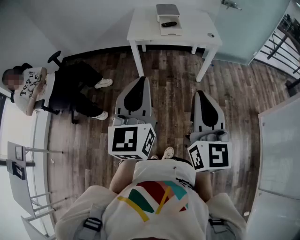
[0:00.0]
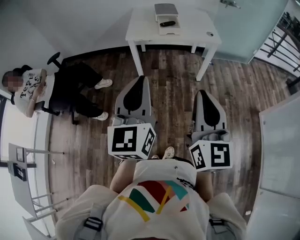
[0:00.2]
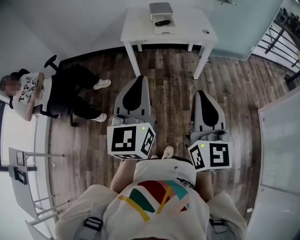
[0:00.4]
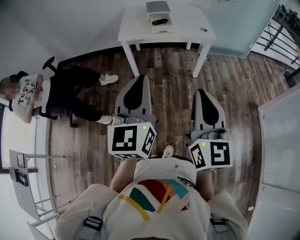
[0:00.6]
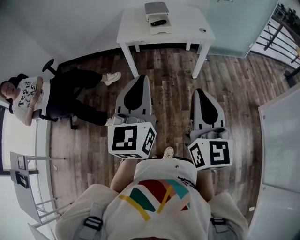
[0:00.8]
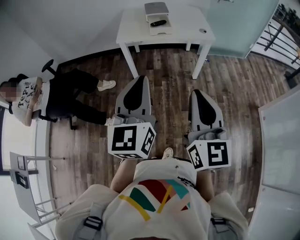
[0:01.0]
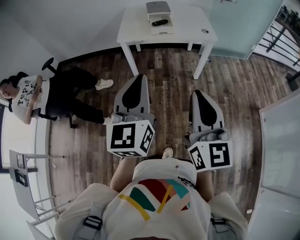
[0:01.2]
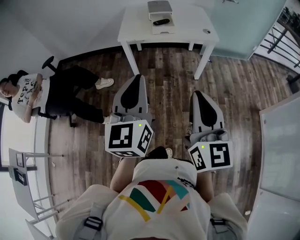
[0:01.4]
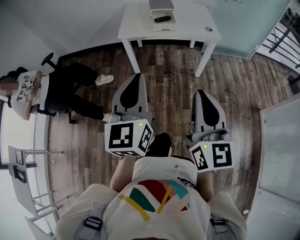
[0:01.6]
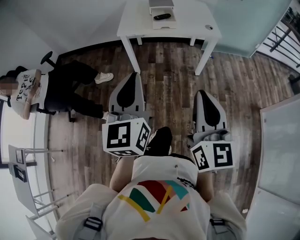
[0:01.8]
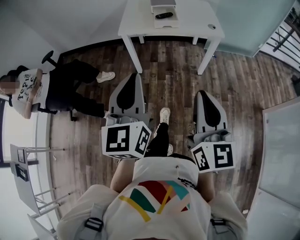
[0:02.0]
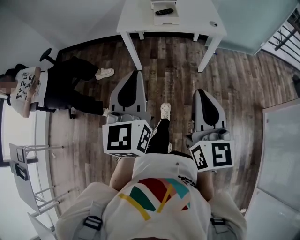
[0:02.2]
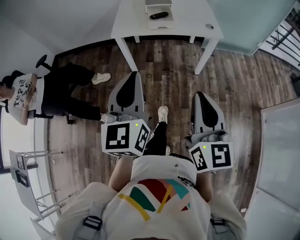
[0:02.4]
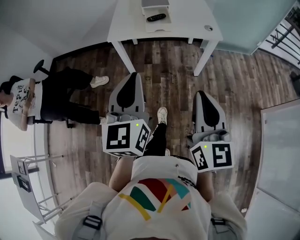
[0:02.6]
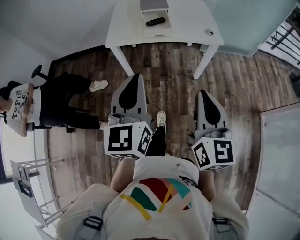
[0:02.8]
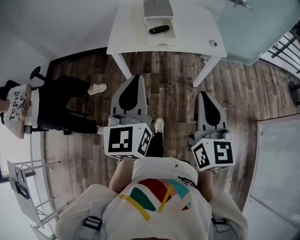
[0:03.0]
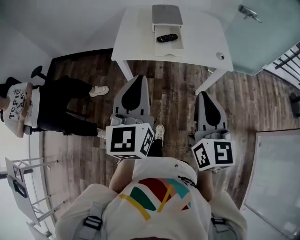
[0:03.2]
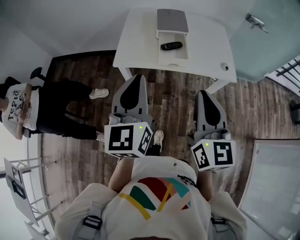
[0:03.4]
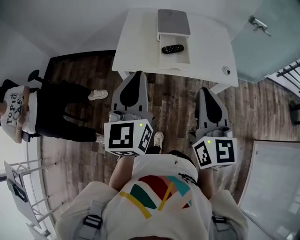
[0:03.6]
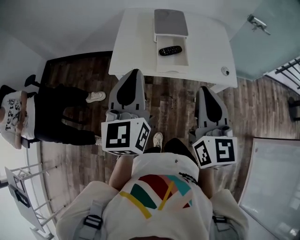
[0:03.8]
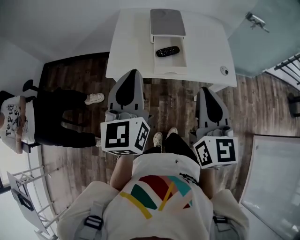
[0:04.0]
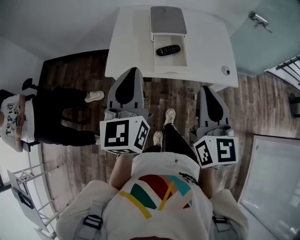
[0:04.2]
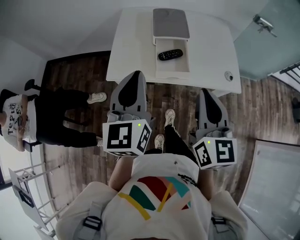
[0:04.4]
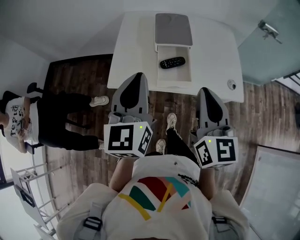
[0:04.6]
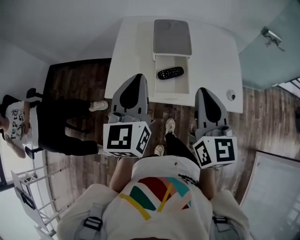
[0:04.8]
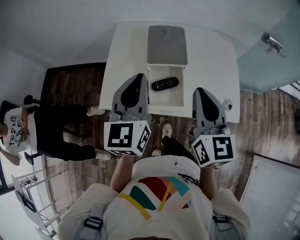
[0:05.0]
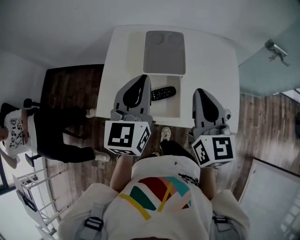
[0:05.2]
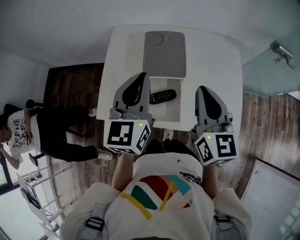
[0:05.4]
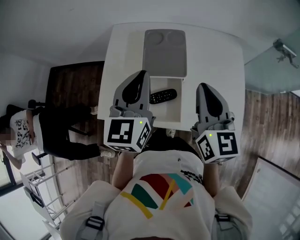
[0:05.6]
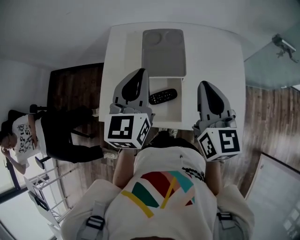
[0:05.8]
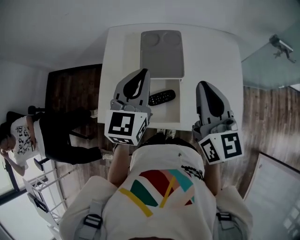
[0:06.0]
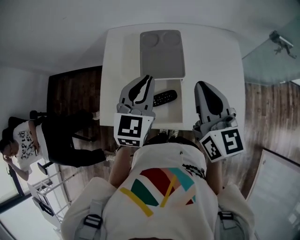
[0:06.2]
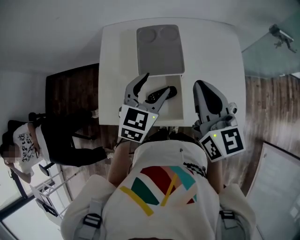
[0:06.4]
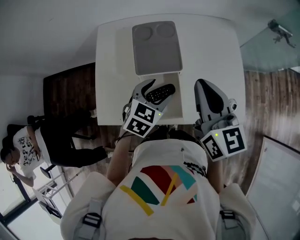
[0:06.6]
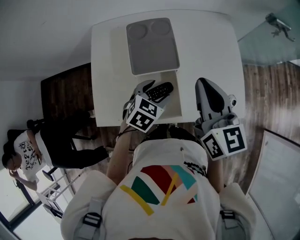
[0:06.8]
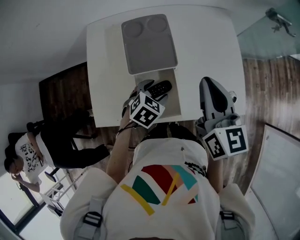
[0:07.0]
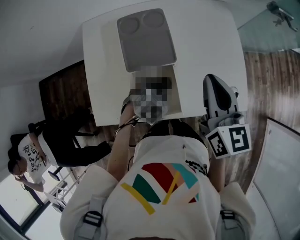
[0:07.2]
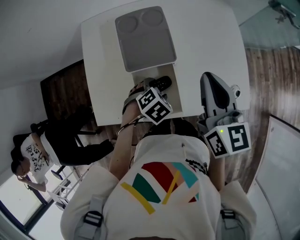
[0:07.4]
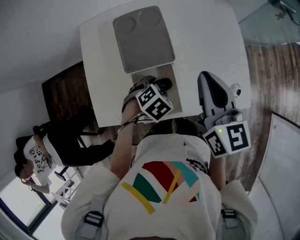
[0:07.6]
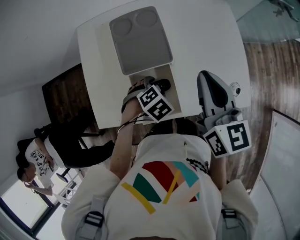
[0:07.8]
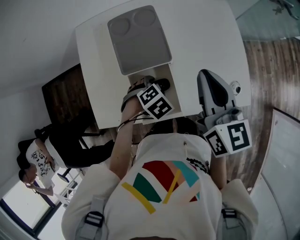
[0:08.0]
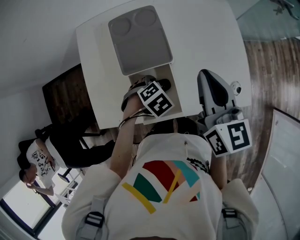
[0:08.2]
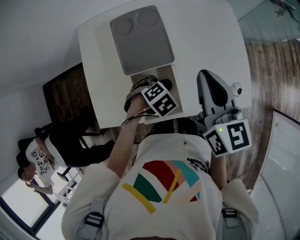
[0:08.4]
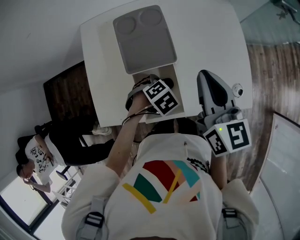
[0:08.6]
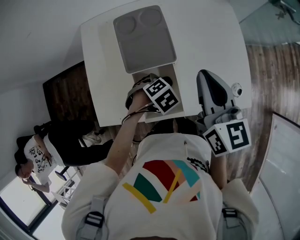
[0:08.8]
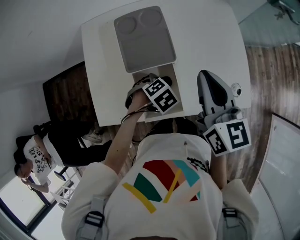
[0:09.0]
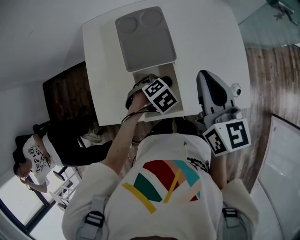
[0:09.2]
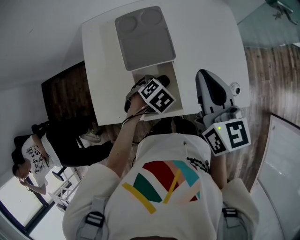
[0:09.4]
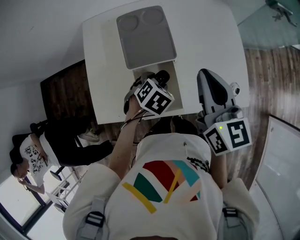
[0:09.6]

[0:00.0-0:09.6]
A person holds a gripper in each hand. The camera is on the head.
0:00.0 to 0:01.6: The left gripper is displaced forward by roughly 5 cm. The right gripper shifts approximately 5 cm forward and to the right.
0:01.6 to 0:03.2: Both grippers move forward, roughly 30 cm.
0:03.2 to 0:04.8: The two grippers go some 30 cm forward.
0:04.8 to 0:06.4: The left gripper moves forward, downward and to the right, some 25 cm, rotates some 40 degrees, and opens up; the right gripper heads forward, covering about 15 cm.
0:06.4 to 0:08.0: The right gripper changes place by some 5 cm, while the left gripper goes approximately 20 cm downward, and tilts its fingers about 50 degrees downward.
0:08.0 to 0:09.6: The grippers stay close to where they were, moving slightly.

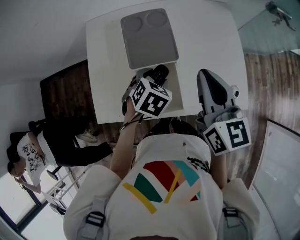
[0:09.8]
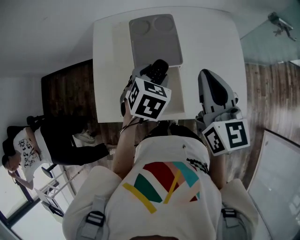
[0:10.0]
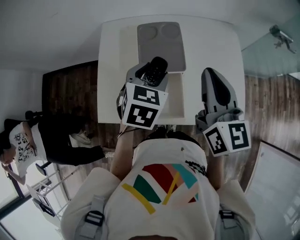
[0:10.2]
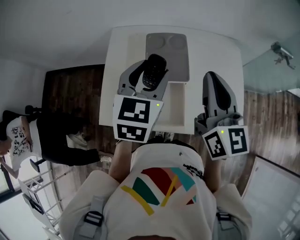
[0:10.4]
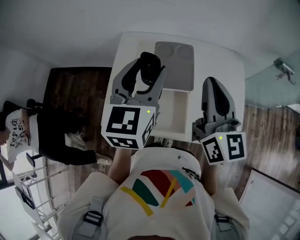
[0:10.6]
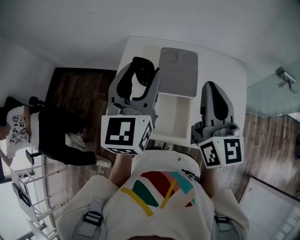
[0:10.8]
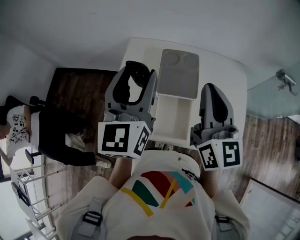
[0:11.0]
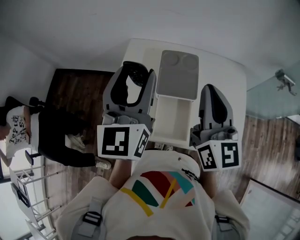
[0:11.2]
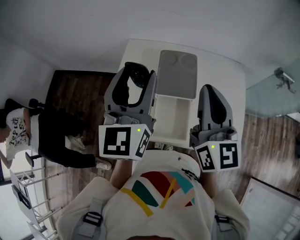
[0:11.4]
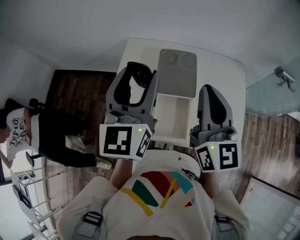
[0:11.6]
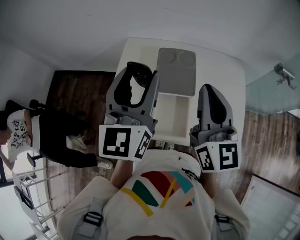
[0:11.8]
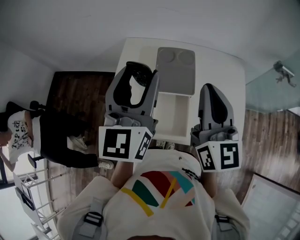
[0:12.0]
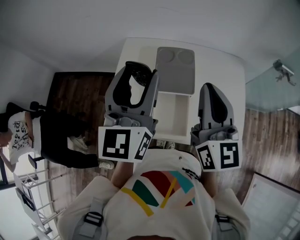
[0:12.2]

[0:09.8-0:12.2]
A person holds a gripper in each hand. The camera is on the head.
0:09.8 to 0:11.0: The right gripper is displaced upward and to the left by approximately 15 cm; the left gripper goes about 35 cm upward and to the left, and tips its fingers upward by about 60 degrees.
0:11.0 to 0:12.2: There are only small adjustments of the grippers.

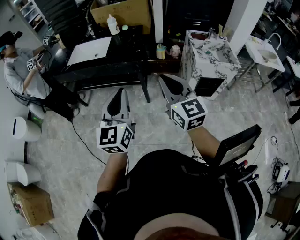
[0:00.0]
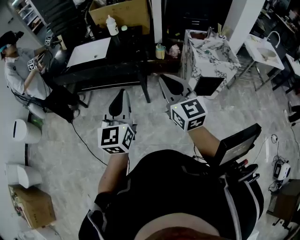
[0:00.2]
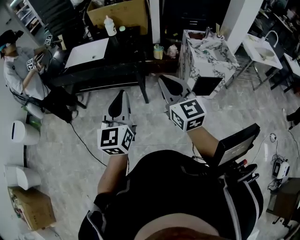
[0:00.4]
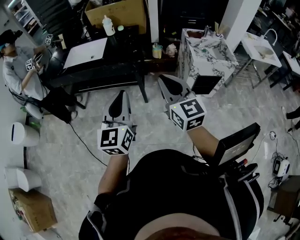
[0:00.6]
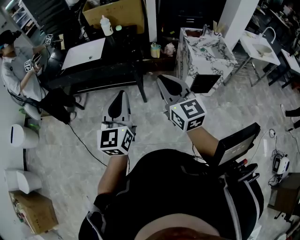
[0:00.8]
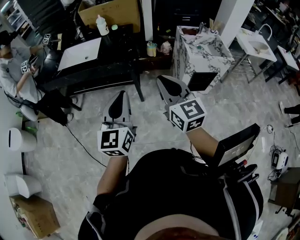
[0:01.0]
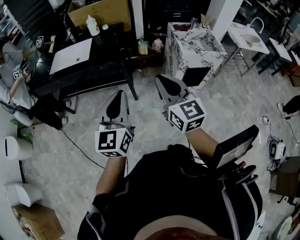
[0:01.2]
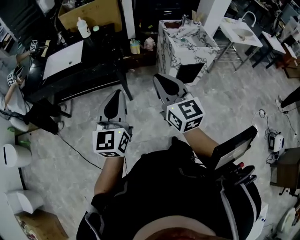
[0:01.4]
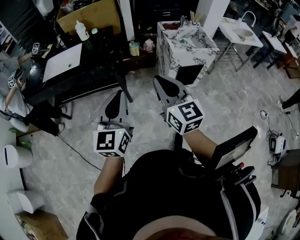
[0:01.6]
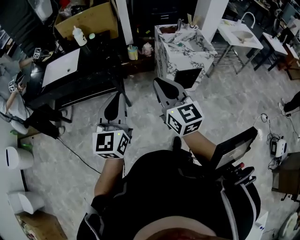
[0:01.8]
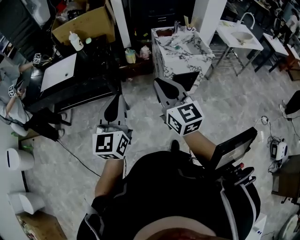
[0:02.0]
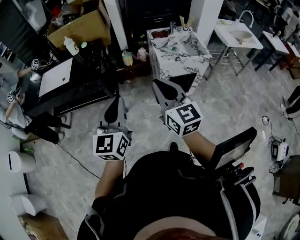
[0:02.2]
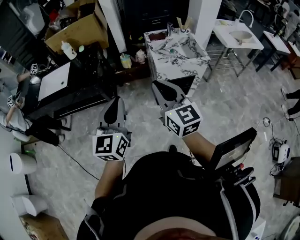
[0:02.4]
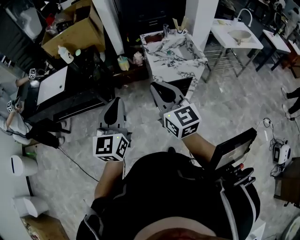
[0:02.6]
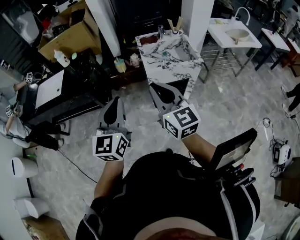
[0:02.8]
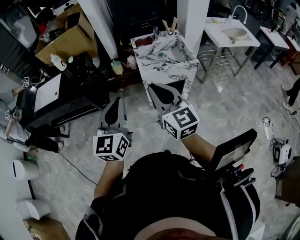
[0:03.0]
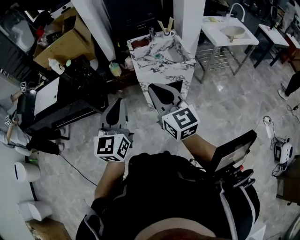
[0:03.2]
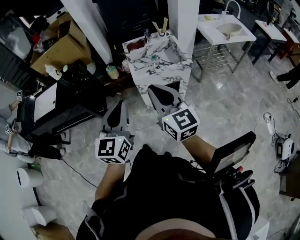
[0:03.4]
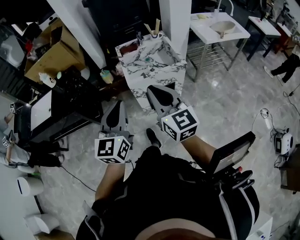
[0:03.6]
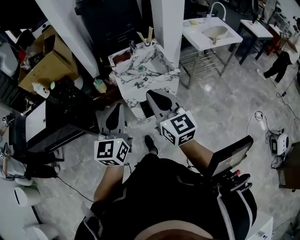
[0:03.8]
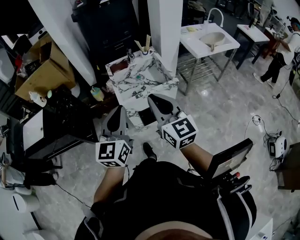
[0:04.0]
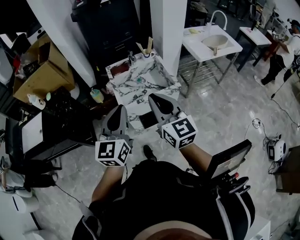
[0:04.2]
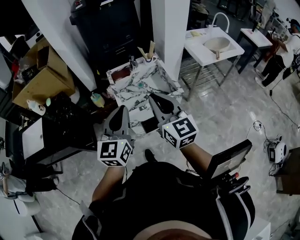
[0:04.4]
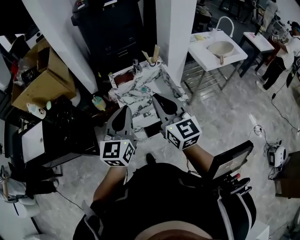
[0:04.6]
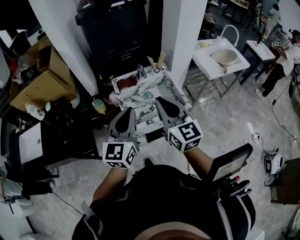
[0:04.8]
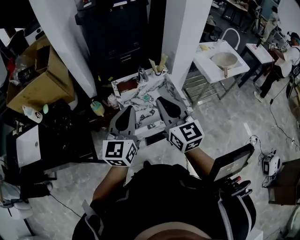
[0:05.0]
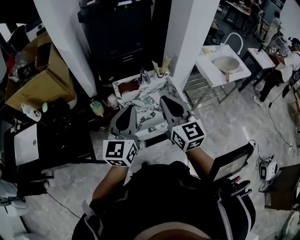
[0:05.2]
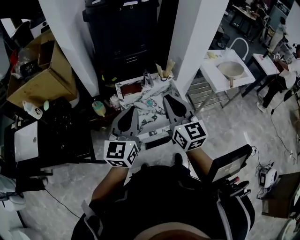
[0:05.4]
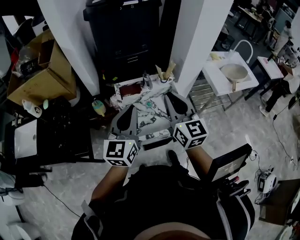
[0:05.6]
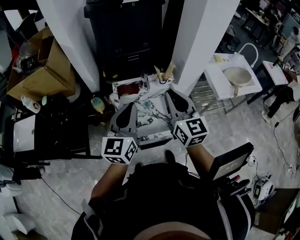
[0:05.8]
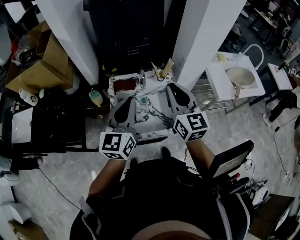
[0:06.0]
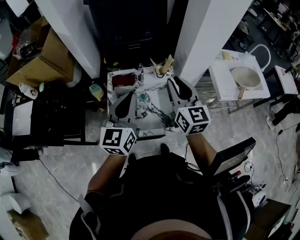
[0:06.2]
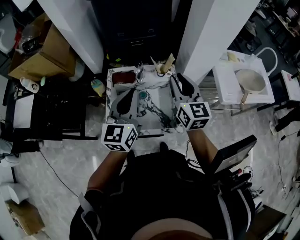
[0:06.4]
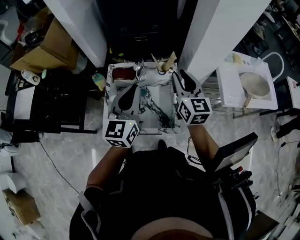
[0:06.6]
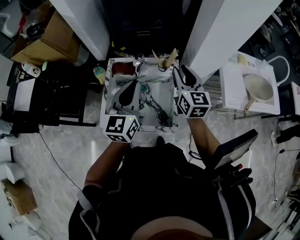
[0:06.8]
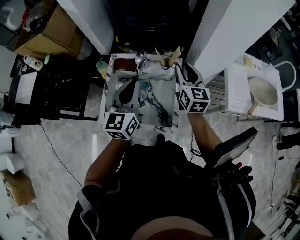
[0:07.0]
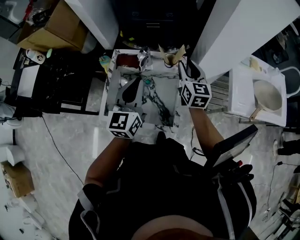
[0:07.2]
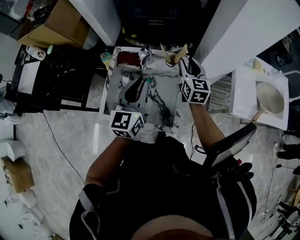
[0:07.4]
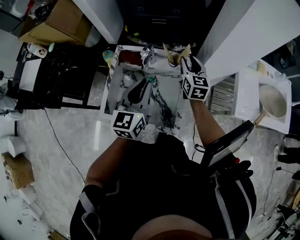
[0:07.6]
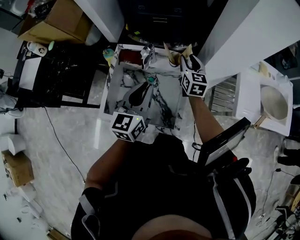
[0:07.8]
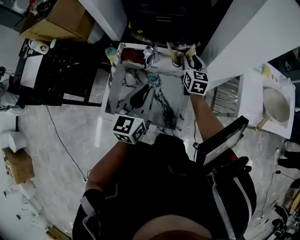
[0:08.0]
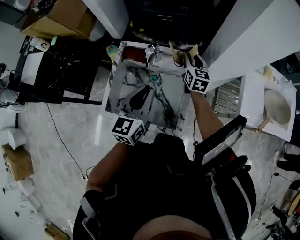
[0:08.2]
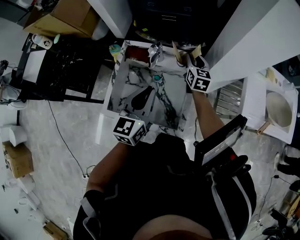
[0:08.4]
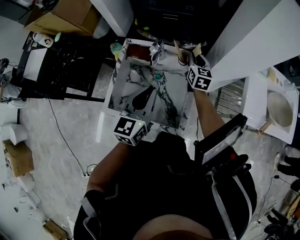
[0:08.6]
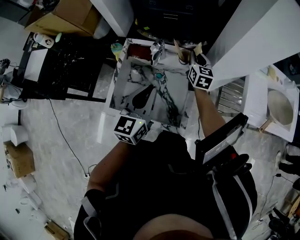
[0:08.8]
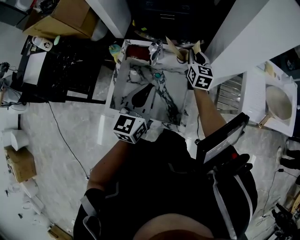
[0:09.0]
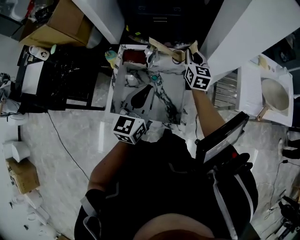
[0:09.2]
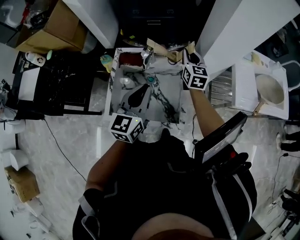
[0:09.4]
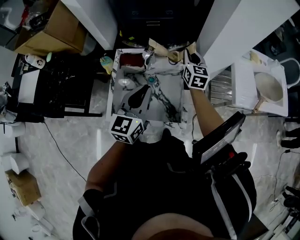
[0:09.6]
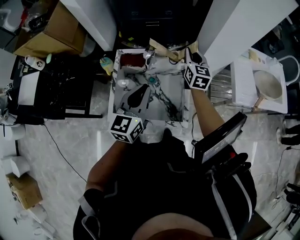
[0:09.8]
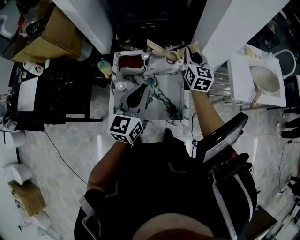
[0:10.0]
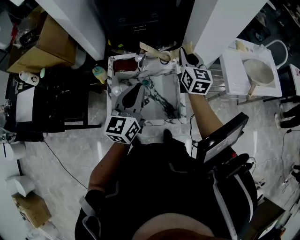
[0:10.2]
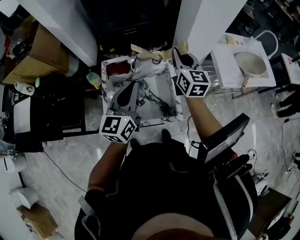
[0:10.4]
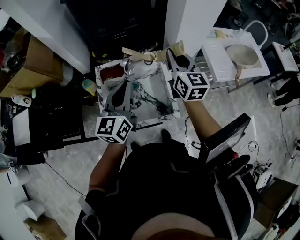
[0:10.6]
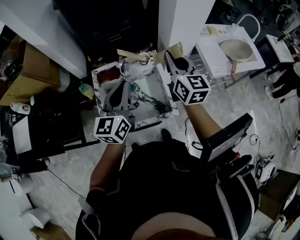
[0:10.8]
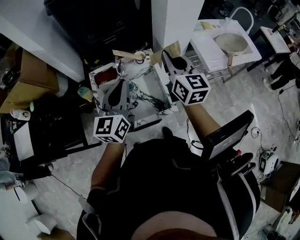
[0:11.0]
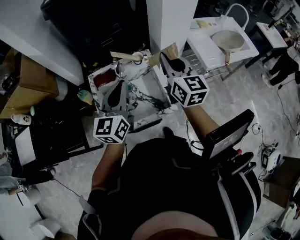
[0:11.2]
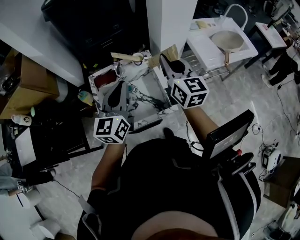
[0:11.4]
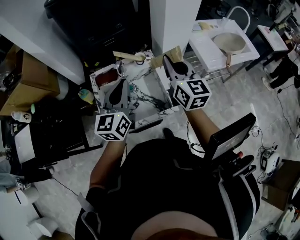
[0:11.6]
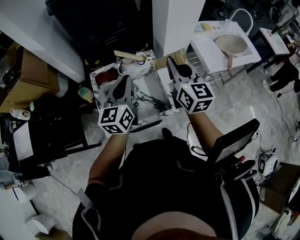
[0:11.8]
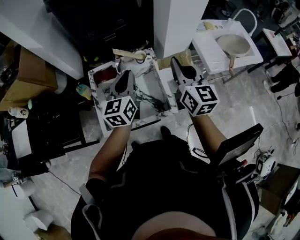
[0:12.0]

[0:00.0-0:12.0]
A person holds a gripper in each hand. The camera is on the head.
0:00.0 to 0:01.6: The right gripper moves approximately 5 cm. Meanwhile the left gripper is displaced to the right by about 5 cm.
0:01.6 to 0:03.0: The two grippers go about 25 cm to the right.
0:03.0 to 0:04.4: Both grippers move forward and to the right, about 25 cm.
0:04.4 to 0:06.0: Both grippers move forward, about 25 cm.
0:06.0 to 0:07.6: The right gripper shifts roughly 30 cm forward, downward and to the right, and opens up; the left gripper shifts some 20 cm downward, to the right and forward.
0:07.6 to 0:09.0: The right gripper closes its fingers.
0:09.0 to 0:10.4: The right gripper goes about 20 cm upward and backward, while the left gripper heads upward, covering about 10 cm.
0:10.4 to 0:12.0: The left gripper is displaced forward by about 5 cm. The right gripper goes roughly 10 cm backward.
